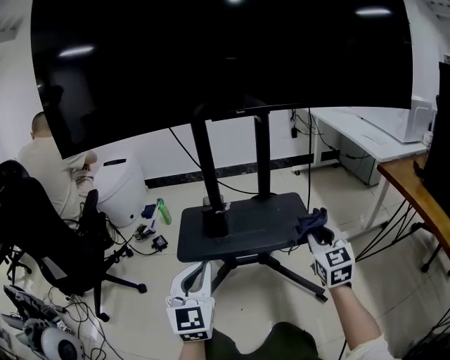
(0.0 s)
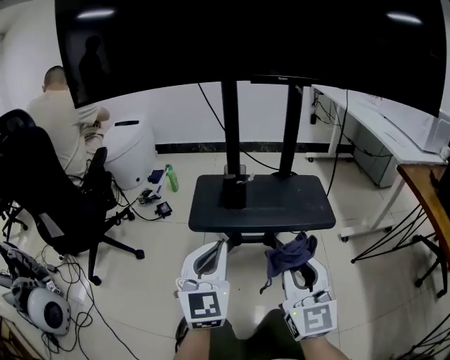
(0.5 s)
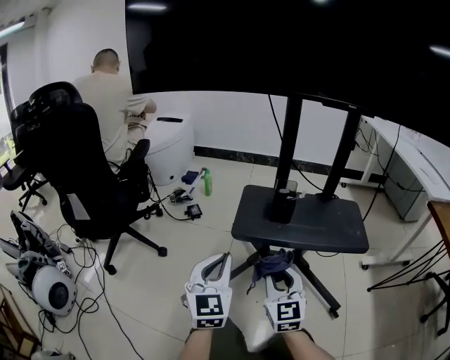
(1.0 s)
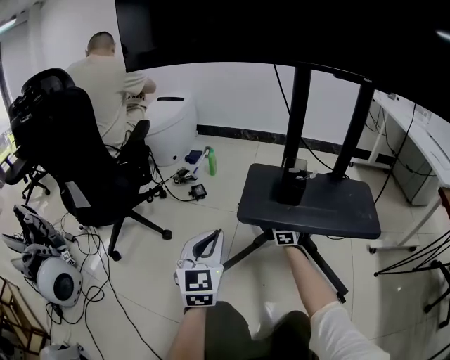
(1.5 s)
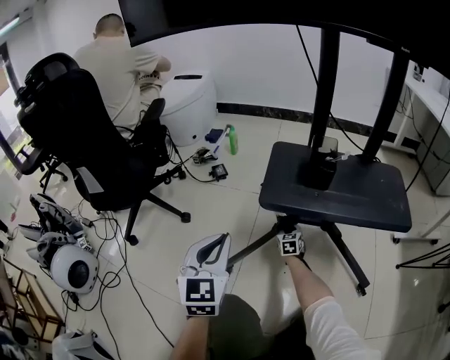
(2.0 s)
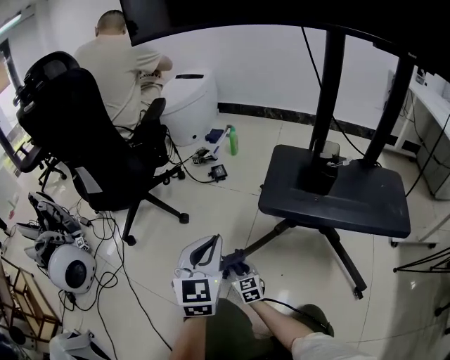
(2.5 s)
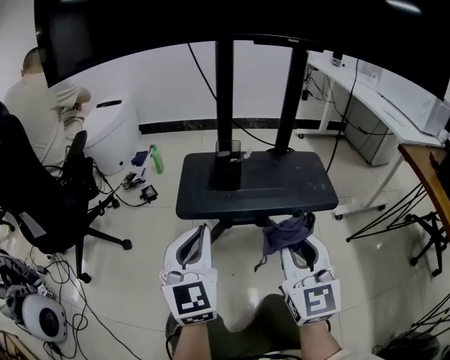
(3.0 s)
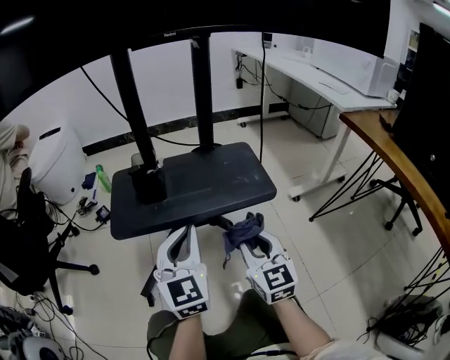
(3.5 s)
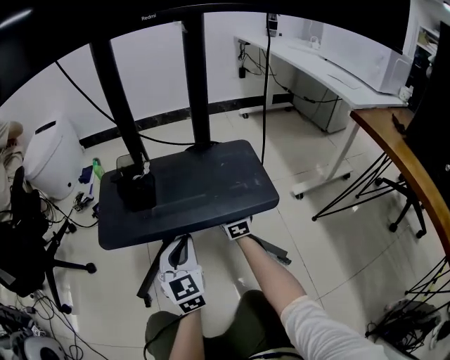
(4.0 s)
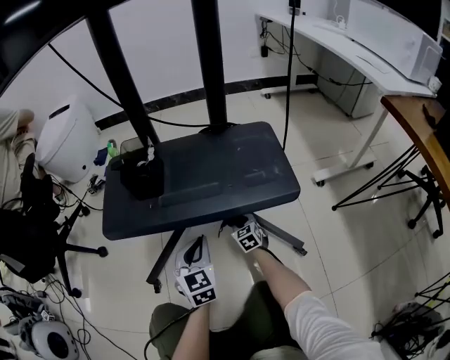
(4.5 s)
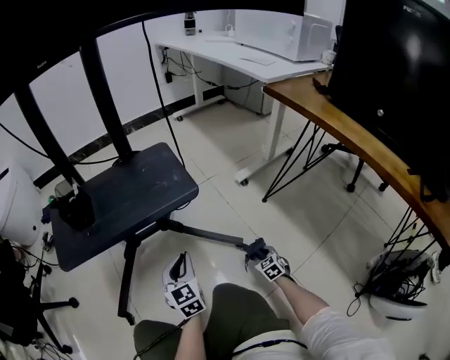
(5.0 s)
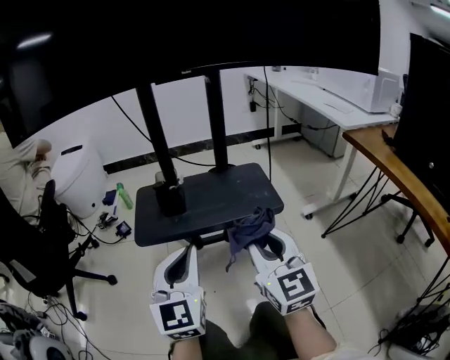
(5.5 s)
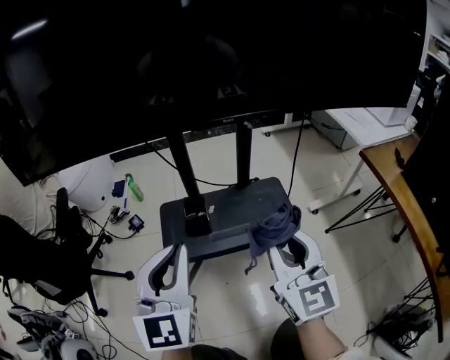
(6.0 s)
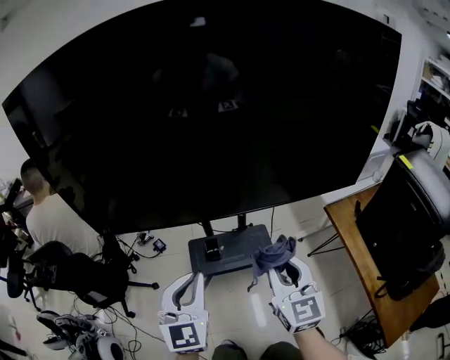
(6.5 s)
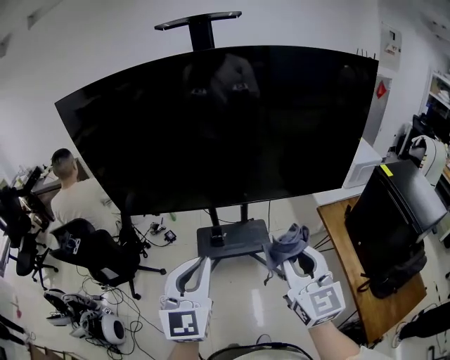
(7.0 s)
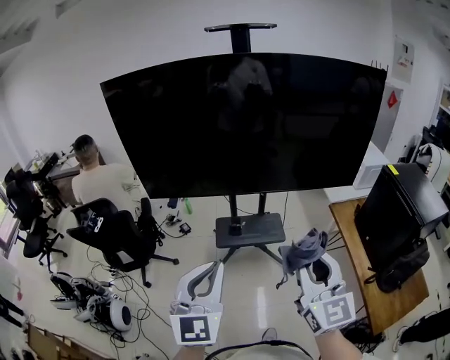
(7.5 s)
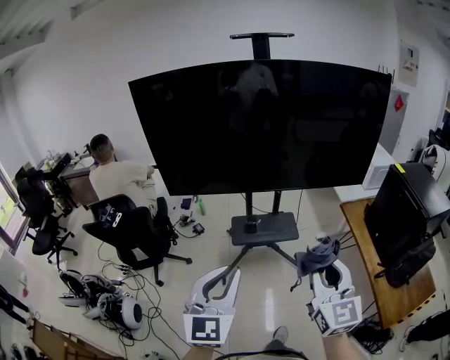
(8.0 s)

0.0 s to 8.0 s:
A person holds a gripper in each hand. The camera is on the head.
0.0 to 2.0 s: The right gripper travels downward, forward and to the left by about 70 cm, and rotates approximately 30 degrees. The left gripper travels to the left and downward by approximately 20 cm.
2.0 to 4.0 s: The right gripper goes about 40 cm upward and to the right, and rotates approximately 30 degrees. The left gripper travels to the right by approximately 25 cm.
4.0 to 6.0 s: The left gripper moves upward, about 50 cm; the right gripper shifts about 50 cm upward and backward.
6.0 to 8.0 s: The two grippers travel together, backward, some 50 cm. Both grippers move upward, some 60 cm.

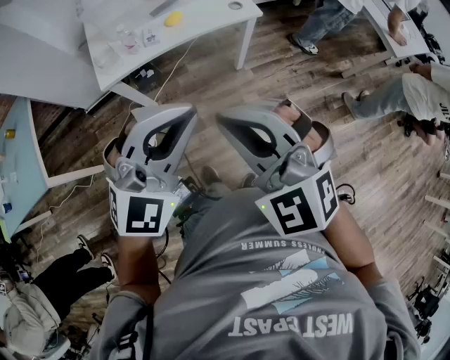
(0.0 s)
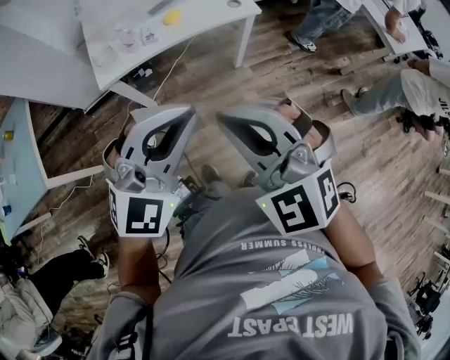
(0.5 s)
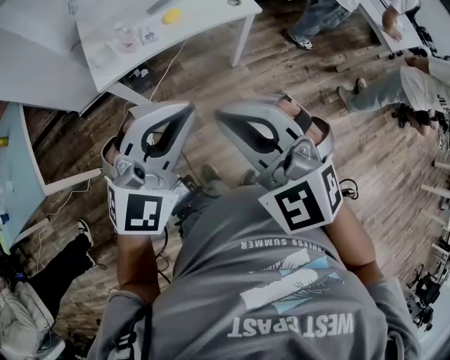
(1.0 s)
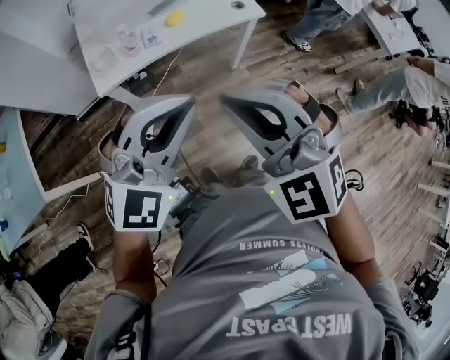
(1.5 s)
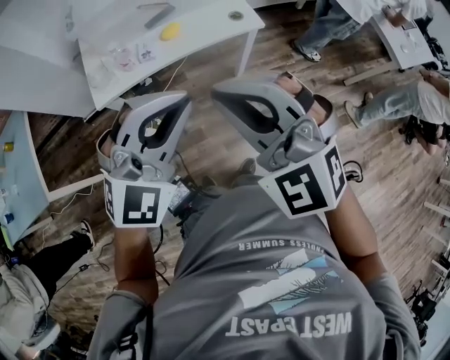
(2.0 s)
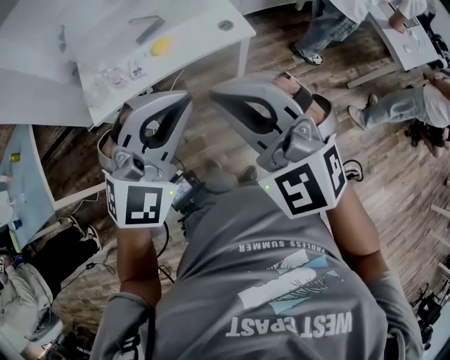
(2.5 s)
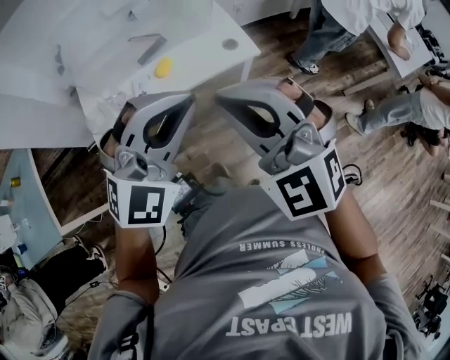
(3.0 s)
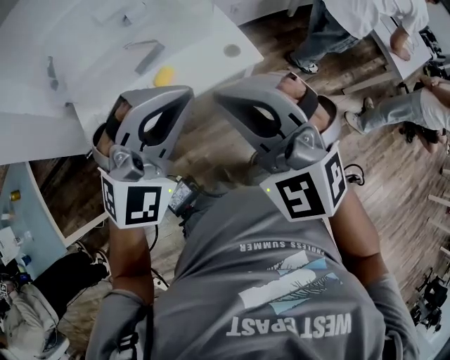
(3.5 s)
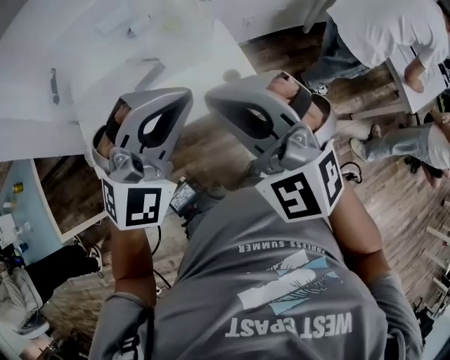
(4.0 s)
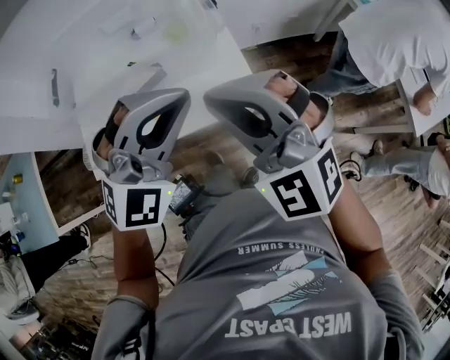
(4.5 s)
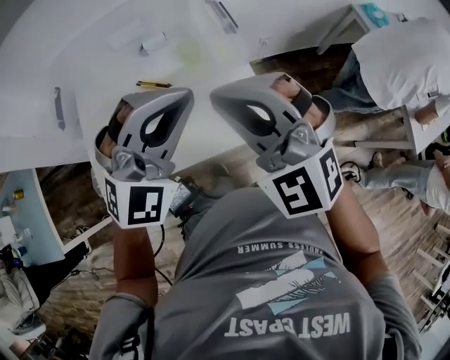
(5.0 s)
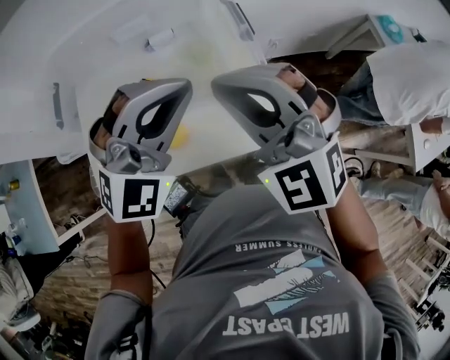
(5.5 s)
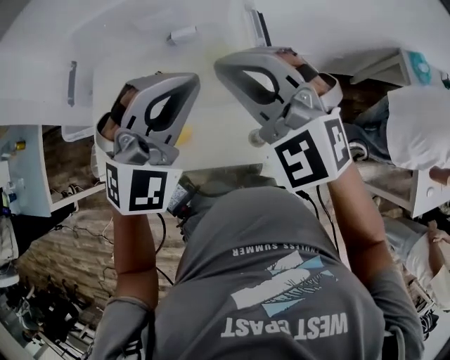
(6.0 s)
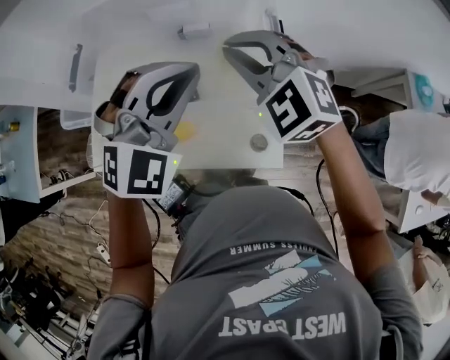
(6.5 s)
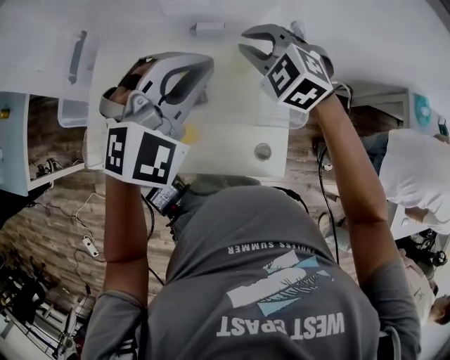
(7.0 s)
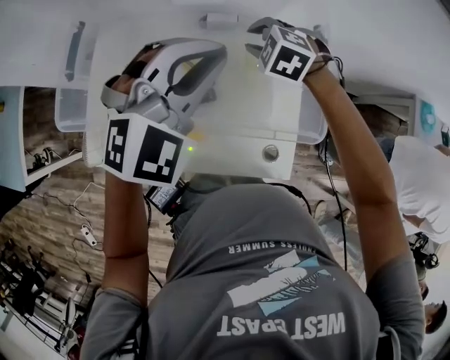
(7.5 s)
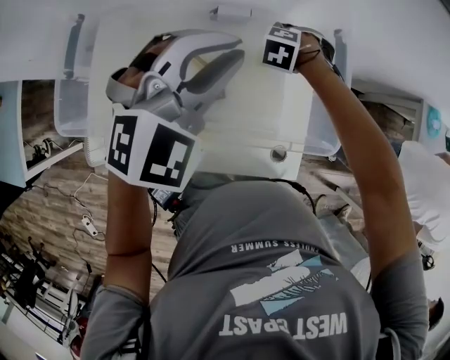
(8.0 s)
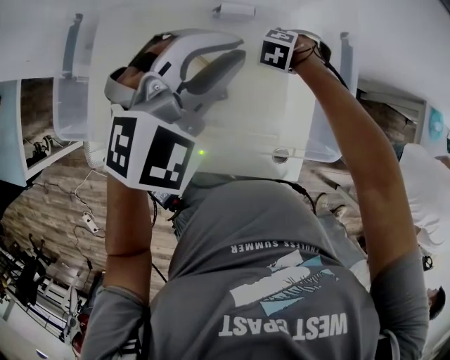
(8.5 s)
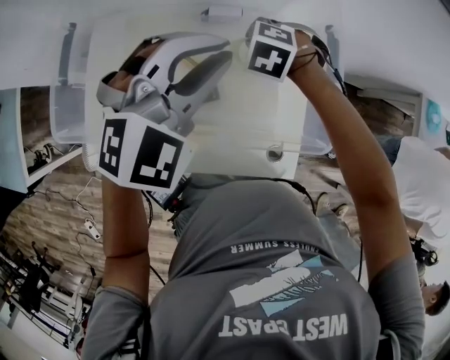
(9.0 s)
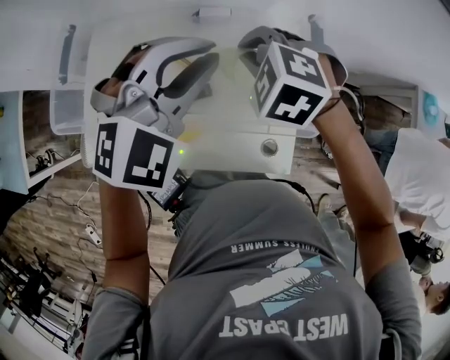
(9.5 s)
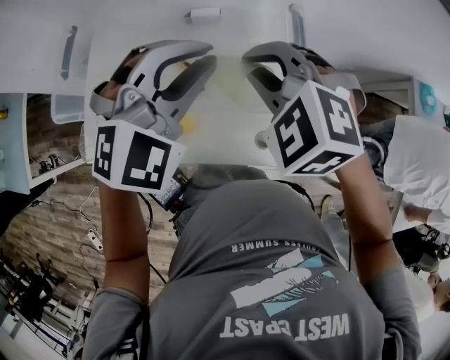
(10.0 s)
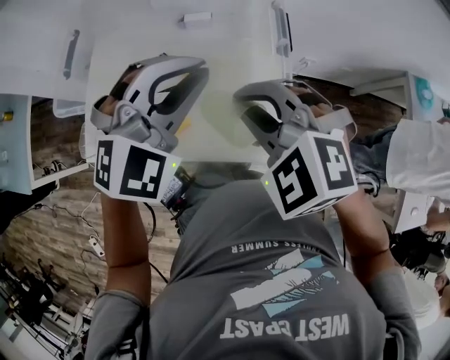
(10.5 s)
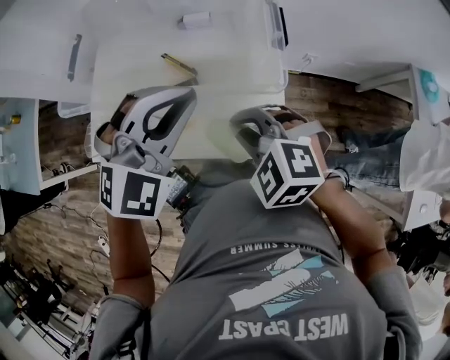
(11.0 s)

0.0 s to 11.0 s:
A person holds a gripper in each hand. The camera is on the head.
0.0 to 2.0 s: Both grippers travel together forward, some 10 cm.
2.0 to 3.5 s: The grippers both shift forward by roughly 20 cm.
3.5 to 5.5 s: Both grippers travel together forward, some 30 cm.
5.5 to 7.5 s: The right gripper heads forward and downward, covering approximately 35 cm, tips its fingers downward by approximately 50 degrees, and opens up; the left gripper moves forward, some 15 cm, and changes its angle by approximately 20 degrees.
7.5 to 9.0 s: The right gripper reaches roughly 15 cm downward, then returns, and closes its fingers.
9.0 to 11.0 s: The right gripper travels backward by roughly 30 cm, and changes its angle by about 30 degrees; the left gripper shifts approximately 15 cm backward.

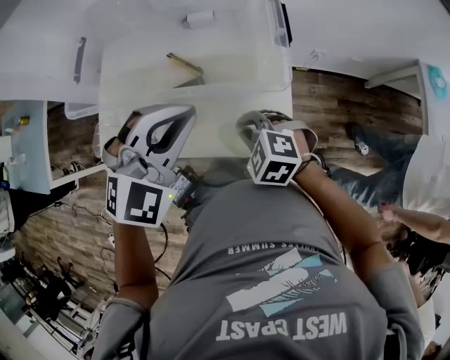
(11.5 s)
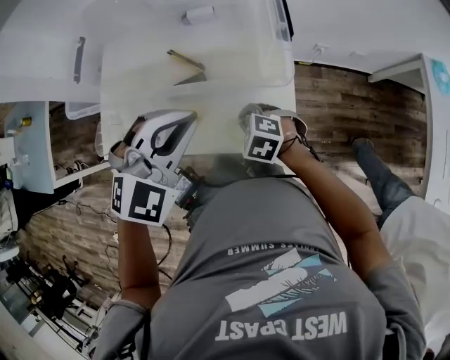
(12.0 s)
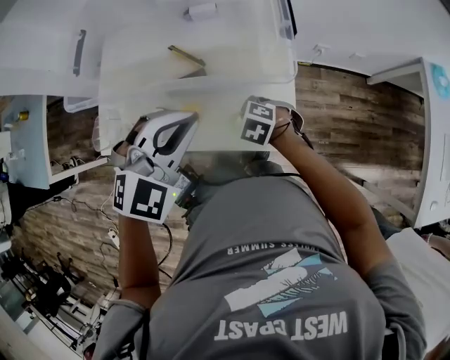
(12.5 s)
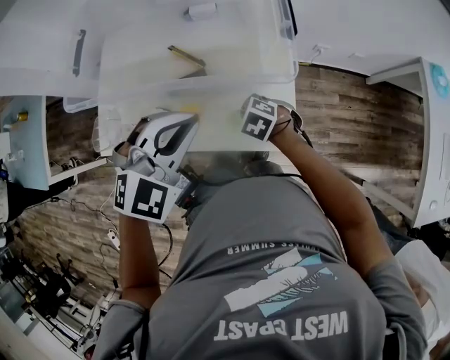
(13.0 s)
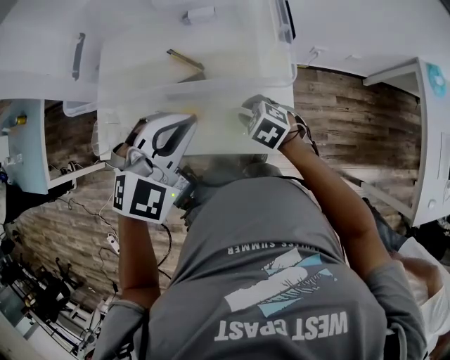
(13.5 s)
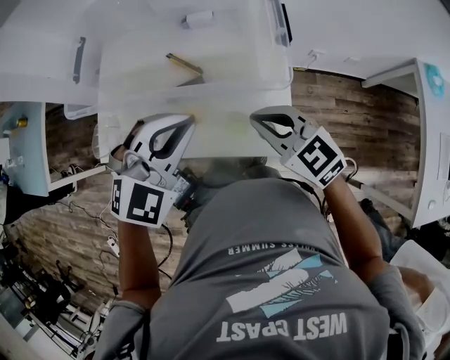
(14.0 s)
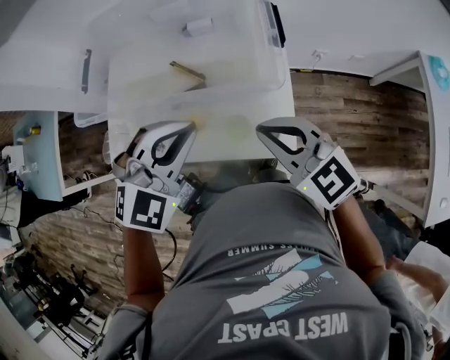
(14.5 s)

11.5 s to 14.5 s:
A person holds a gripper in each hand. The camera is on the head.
11.5 to 13.0 s: The right gripper shifts about 10 cm downward, and changes its angle by roughly 20 degrees. Meanwhile the left gripper shifts by about 5 cm.
13.0 to 14.5 s: The right gripper heads upward, covering roughly 25 cm, and points its fingers approximately 50 degrees further upward.

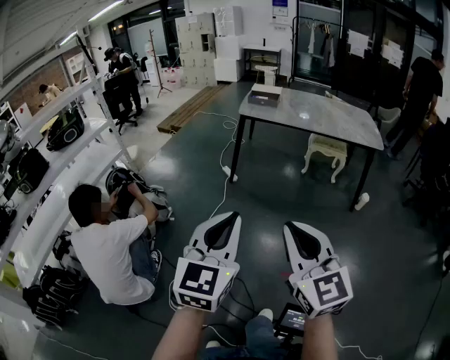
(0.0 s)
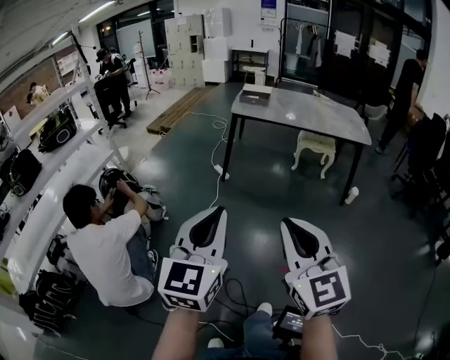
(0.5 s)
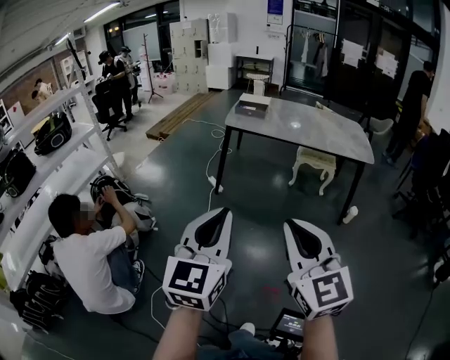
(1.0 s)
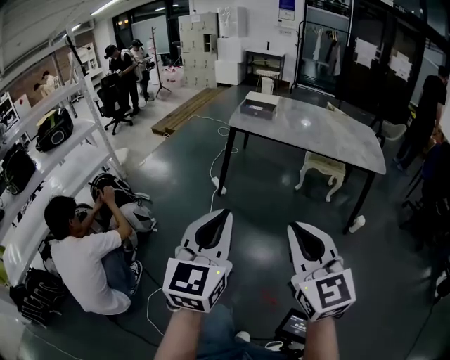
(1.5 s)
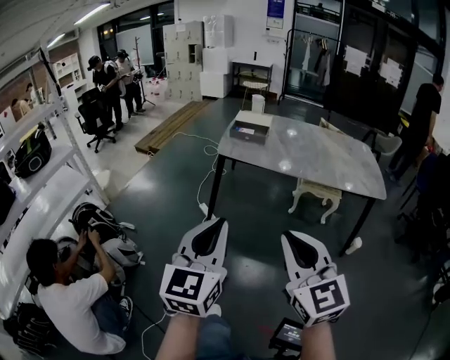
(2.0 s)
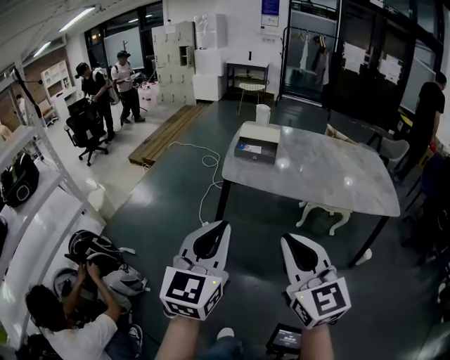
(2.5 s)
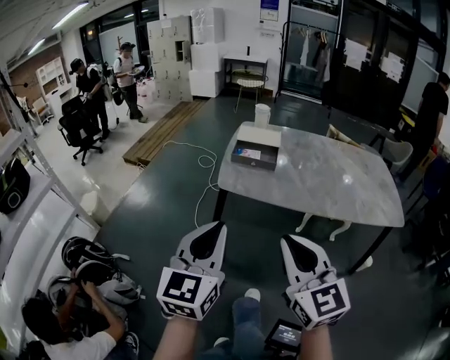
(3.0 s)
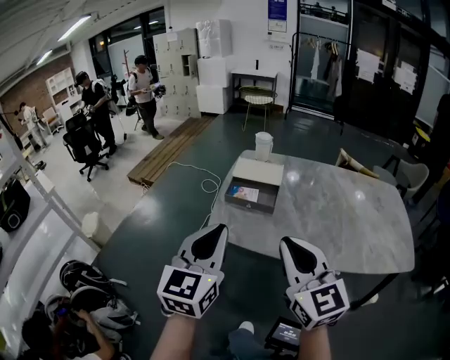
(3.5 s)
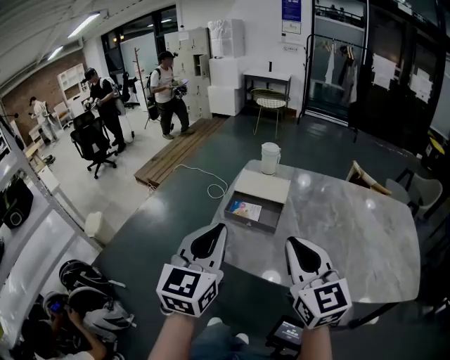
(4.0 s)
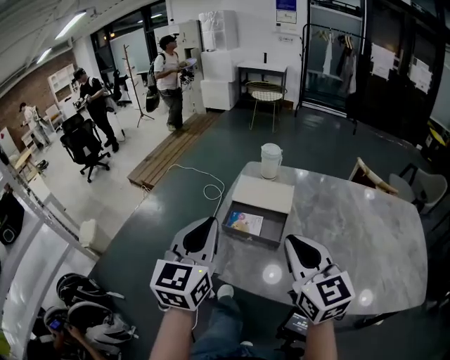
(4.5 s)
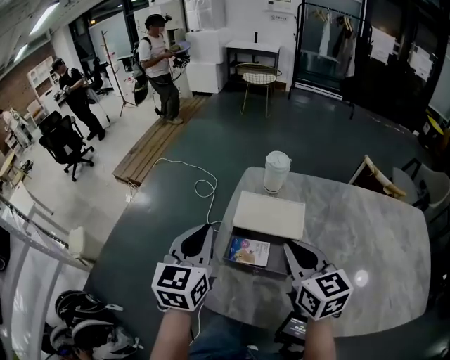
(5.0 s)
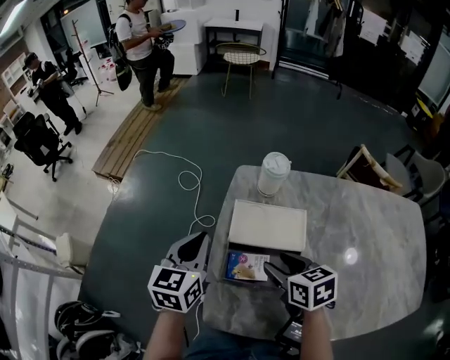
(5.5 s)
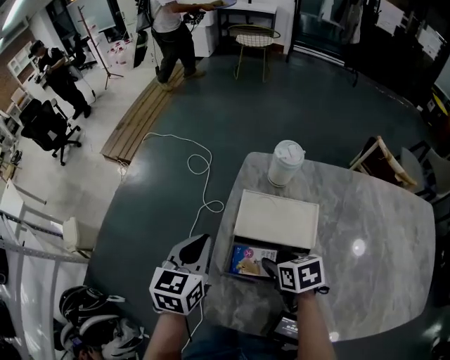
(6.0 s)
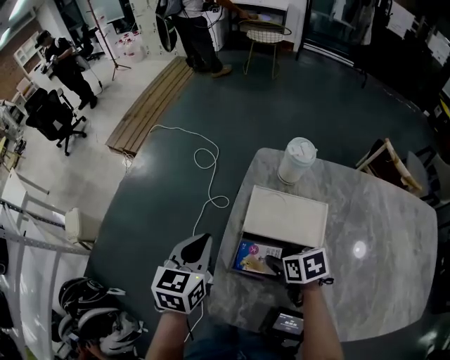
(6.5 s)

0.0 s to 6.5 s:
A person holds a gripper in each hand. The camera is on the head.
0.0 to 2.0 s: Both grippers move forward, approximately 30 cm.
2.0 to 4.5 s: The pair of grippers is taken forward, roughly 60 cm.
4.5 to 6.5 s: The right gripper goes about 35 cm downward and forward, points its fingers about 50 degrees further downward, and opens its fingers; the left gripper shifts some 25 cm forward and downward, and turns by approximately 30 degrees.
